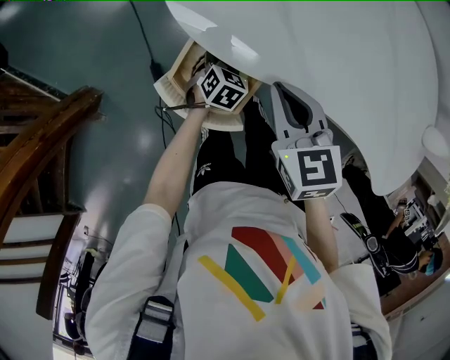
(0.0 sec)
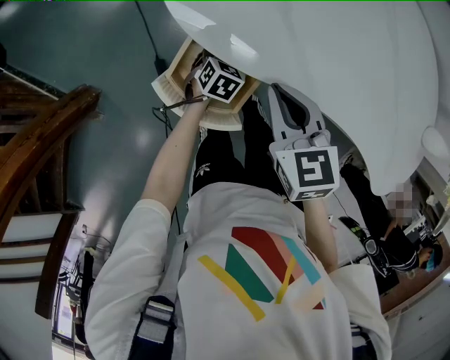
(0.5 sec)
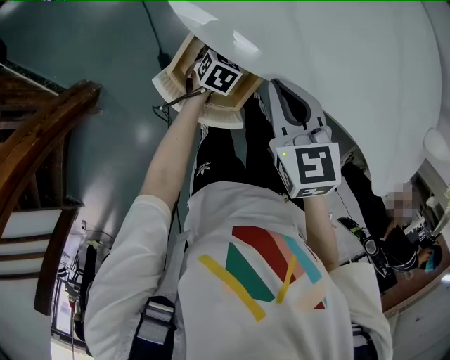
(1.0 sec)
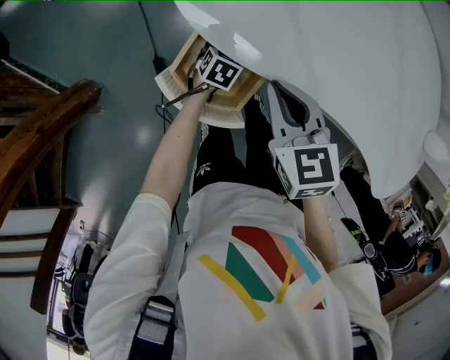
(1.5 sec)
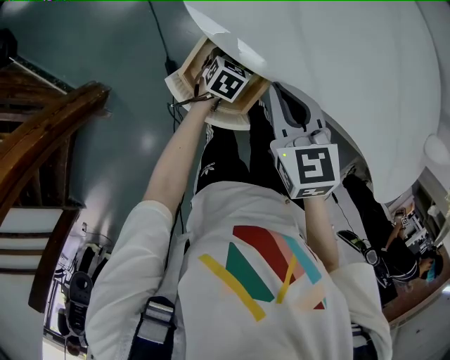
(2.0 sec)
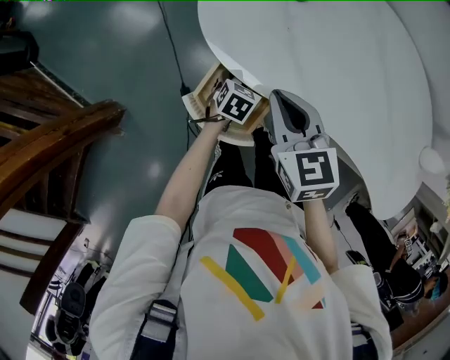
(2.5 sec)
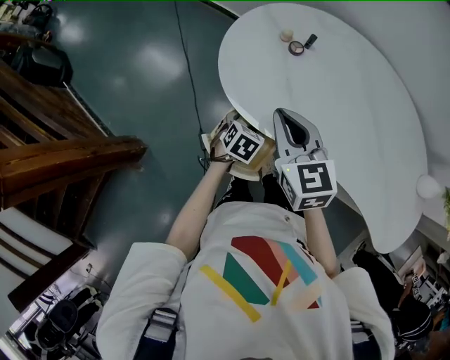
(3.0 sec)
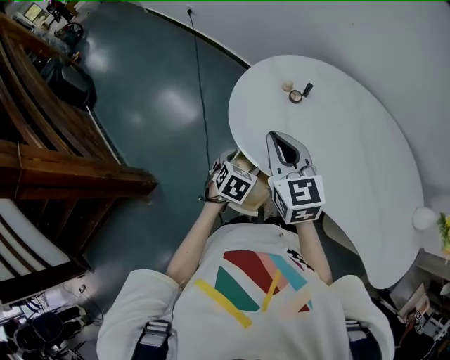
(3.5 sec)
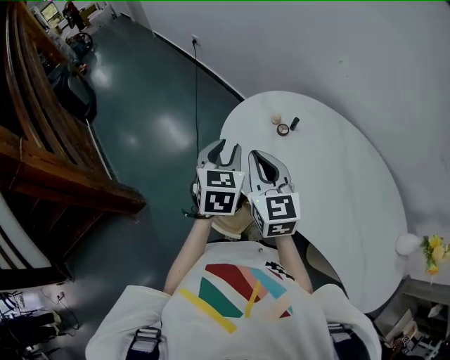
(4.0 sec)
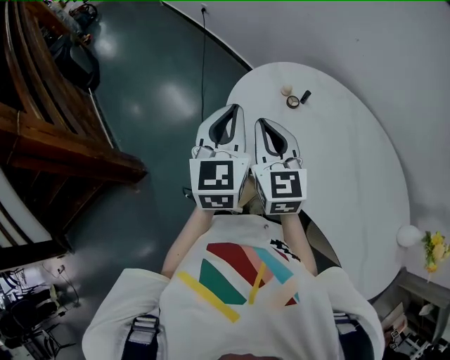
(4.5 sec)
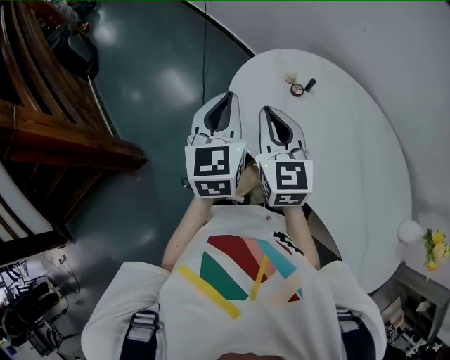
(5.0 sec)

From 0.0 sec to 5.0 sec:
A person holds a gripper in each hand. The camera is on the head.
From 0.0 sec to 2.5 sec: The two grippers go roughly 5 cm upward. The left gripper opens its fingers.
From 2.5 sec to 5.0 sec: The left gripper travels upward by some 40 cm, angles its fingers upward, by roughly 40 degrees, and closes its fingers, while the right gripper heads upward, covering about 15 cm, and rotates about 30 degrees.

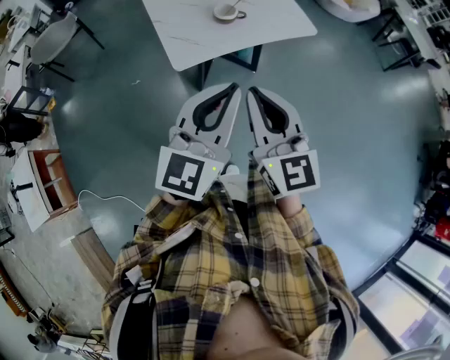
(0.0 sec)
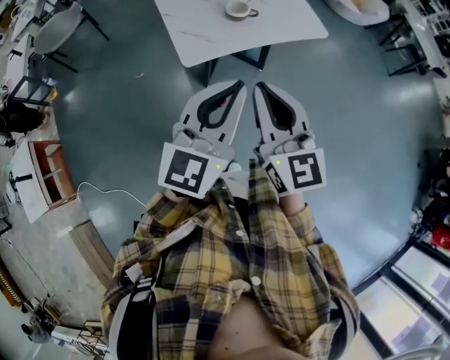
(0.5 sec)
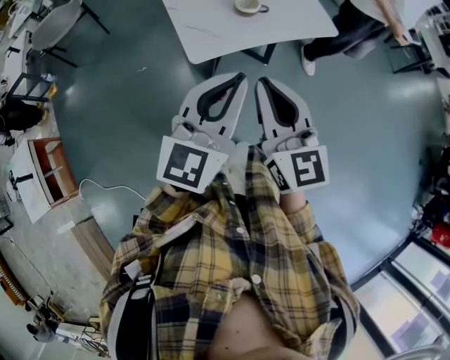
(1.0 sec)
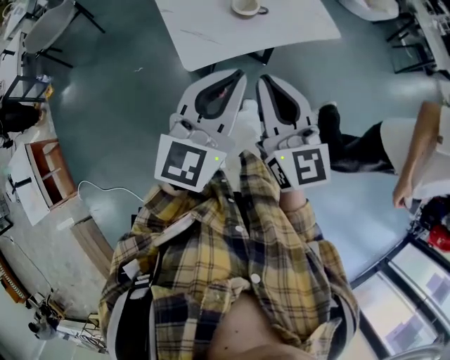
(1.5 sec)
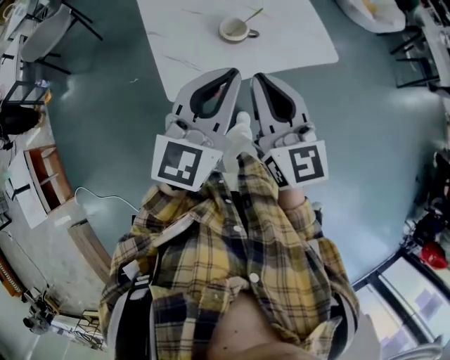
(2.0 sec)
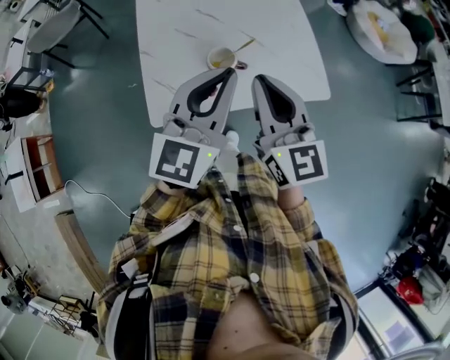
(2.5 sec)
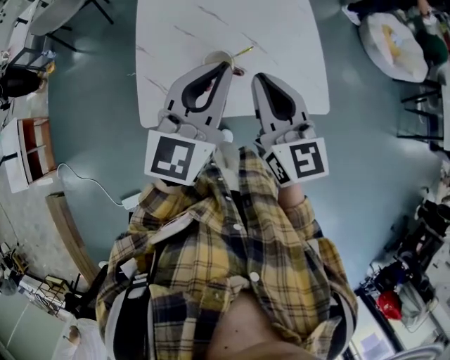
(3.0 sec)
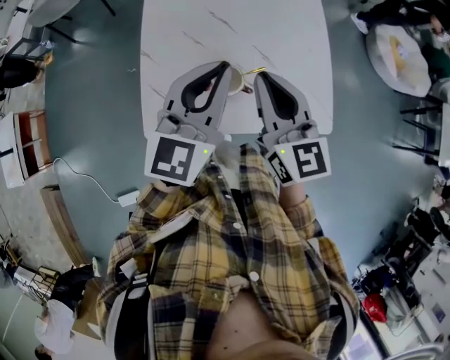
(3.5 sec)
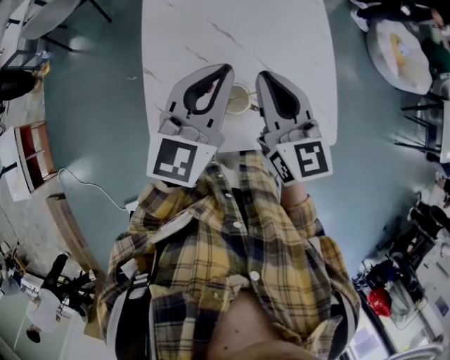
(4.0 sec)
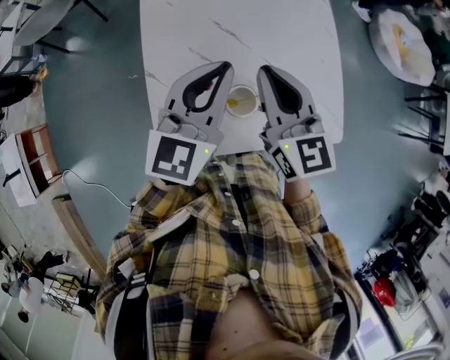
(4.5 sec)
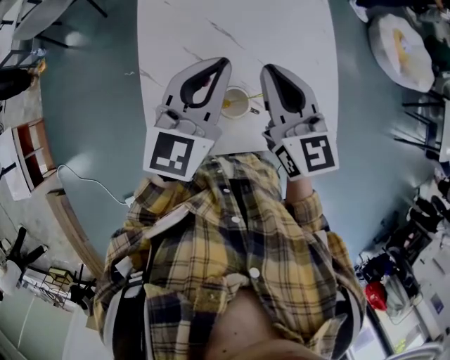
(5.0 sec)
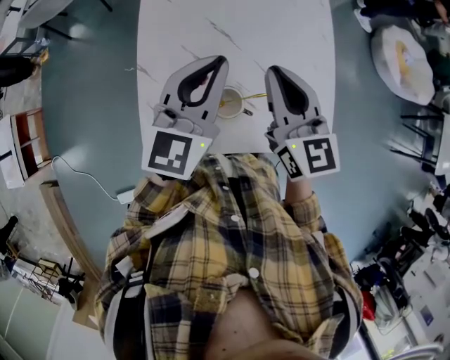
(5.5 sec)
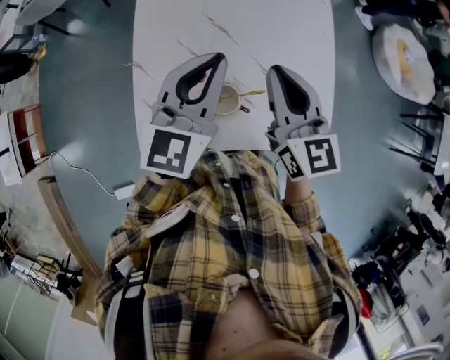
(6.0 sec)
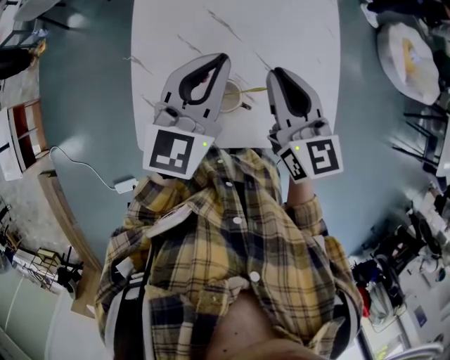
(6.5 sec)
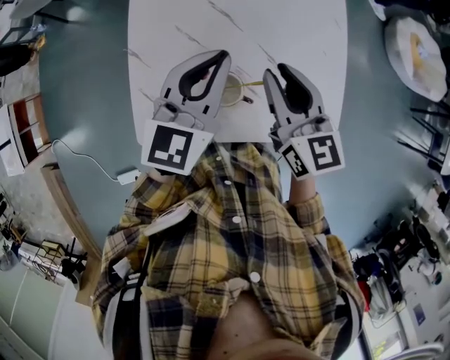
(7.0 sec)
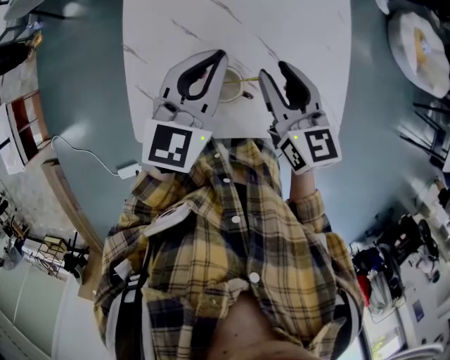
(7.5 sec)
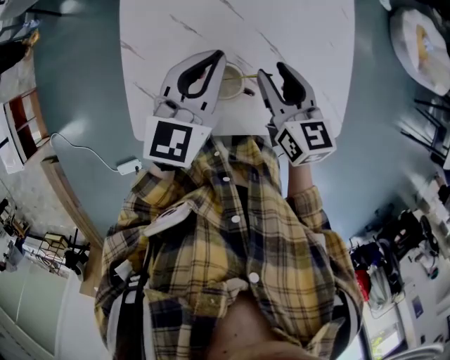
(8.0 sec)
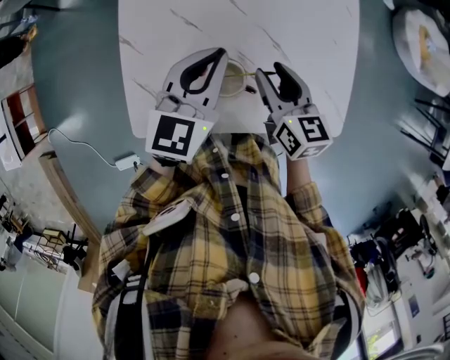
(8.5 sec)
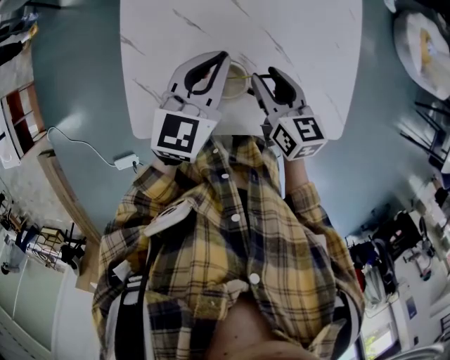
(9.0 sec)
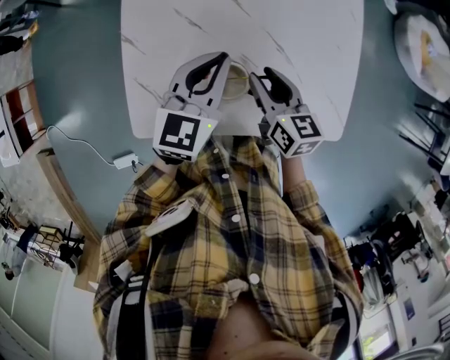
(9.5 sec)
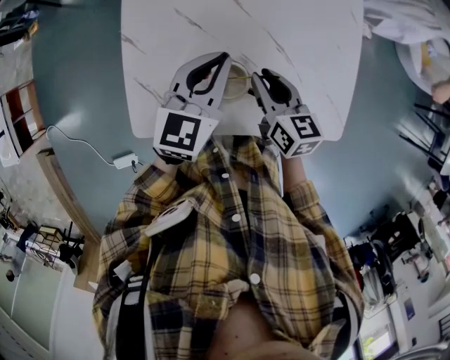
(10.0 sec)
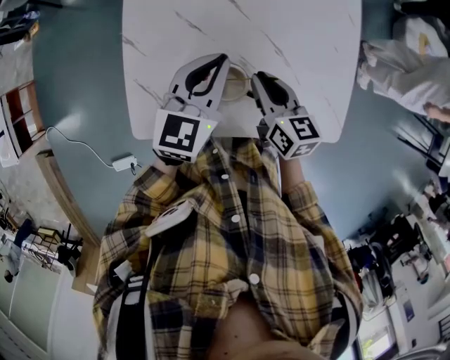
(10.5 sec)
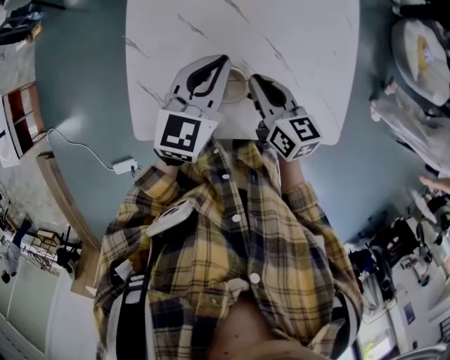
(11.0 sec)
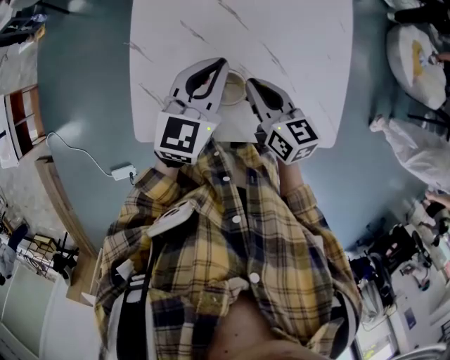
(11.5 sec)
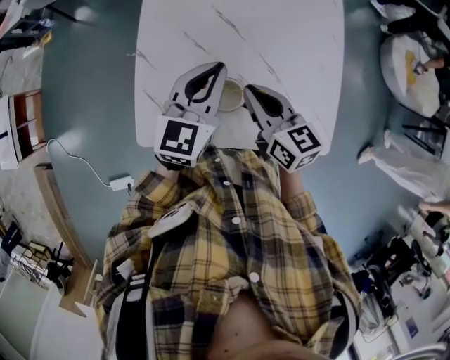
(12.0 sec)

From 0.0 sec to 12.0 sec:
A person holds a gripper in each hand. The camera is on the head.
From 0.0 sec to 2.0 sec: The two grippers go about 20 cm forward.
From 2.0 sec to 4.0 sec: The two grippers go some 25 cm forward.
From 4.0 sec to 6.0 sec: The right gripper changes place by approximately 5 cm.
From 6.0 sec to 8.0 sec: Both grippers move downward, some 10 cm. The right gripper opens up.
From 8.0 sec to 10.0 sec: The right gripper goes some 5 cm downward.
From 10.0 sec to 12.0 sec: The left gripper heads upward, covering some 5 cm; the right gripper is displaced upward by roughly 10 cm.

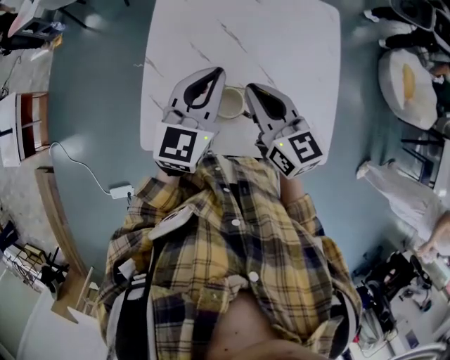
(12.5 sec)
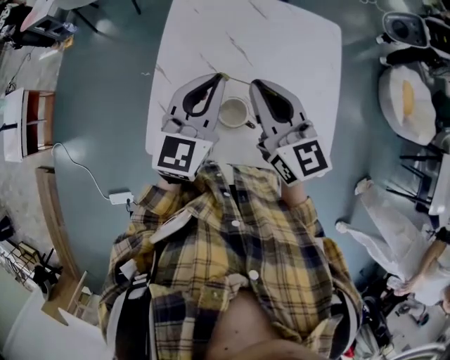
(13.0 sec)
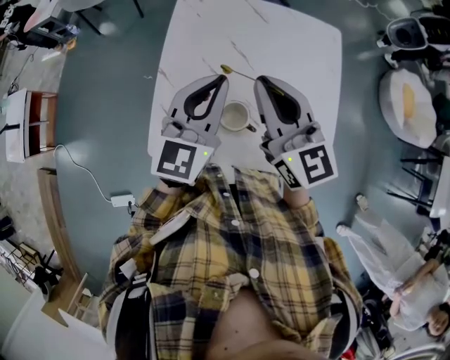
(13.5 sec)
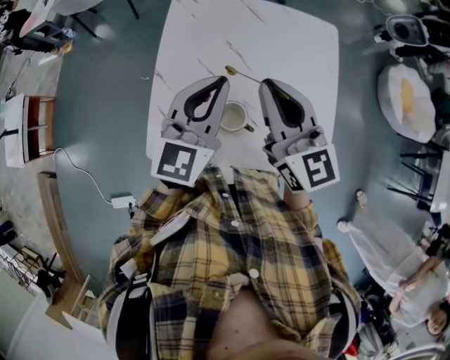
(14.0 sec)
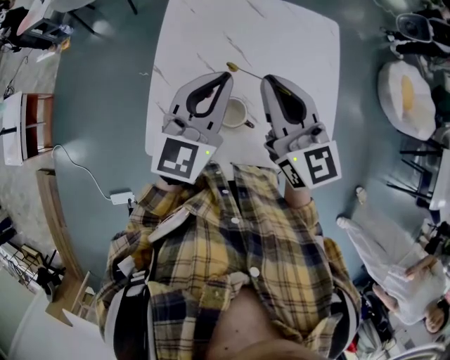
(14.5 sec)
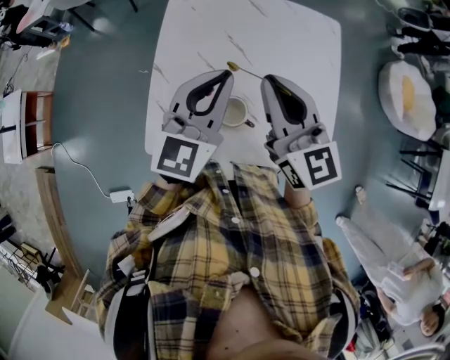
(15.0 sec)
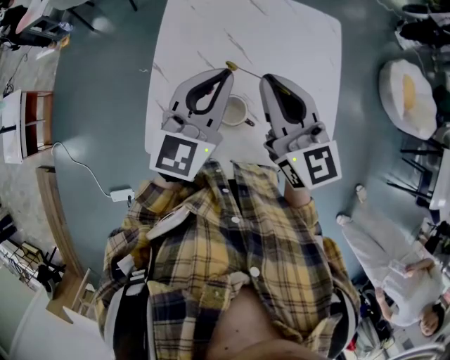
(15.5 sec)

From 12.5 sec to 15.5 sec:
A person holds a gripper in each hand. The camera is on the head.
From 12.5 sec to 14.0 sec: The right gripper shifts approximately 10 cm upward. The left gripper travels upward by about 5 cm.
From 14.0 sec to 15.5 sec: Both grippers stay put.

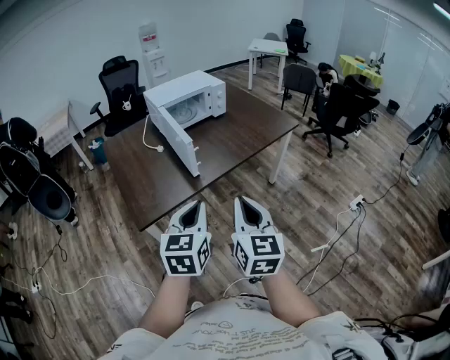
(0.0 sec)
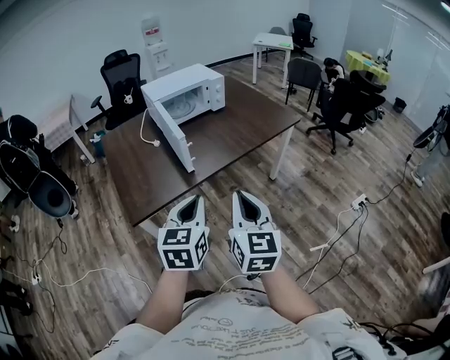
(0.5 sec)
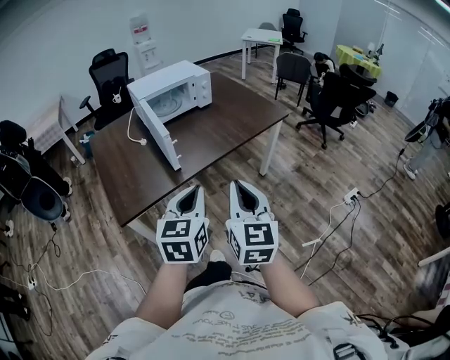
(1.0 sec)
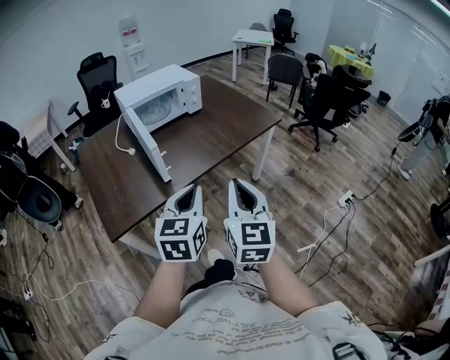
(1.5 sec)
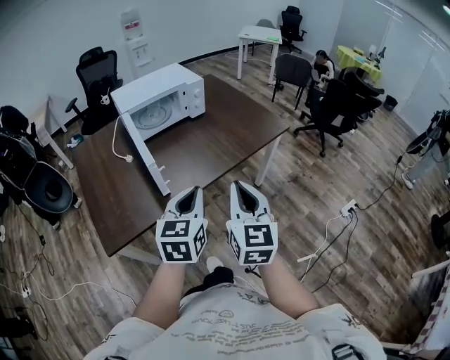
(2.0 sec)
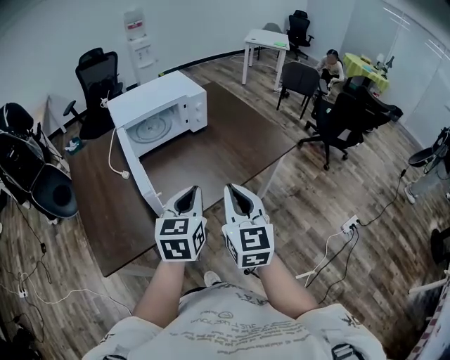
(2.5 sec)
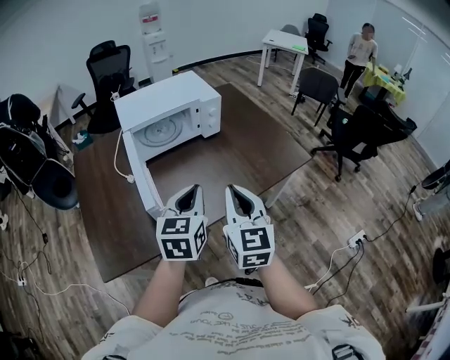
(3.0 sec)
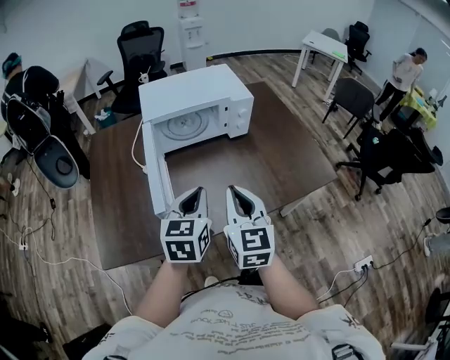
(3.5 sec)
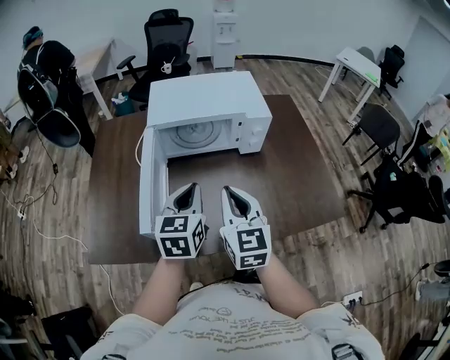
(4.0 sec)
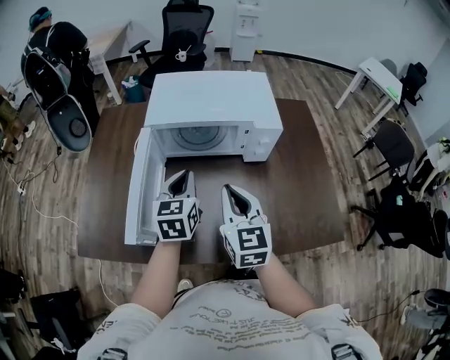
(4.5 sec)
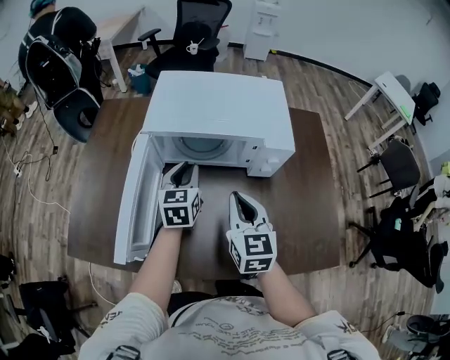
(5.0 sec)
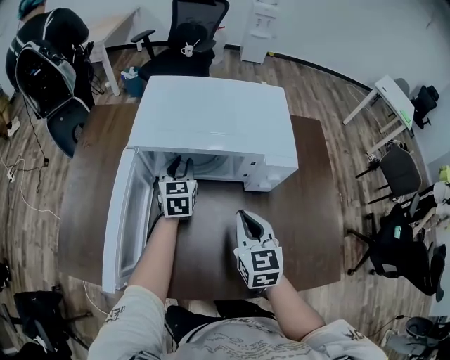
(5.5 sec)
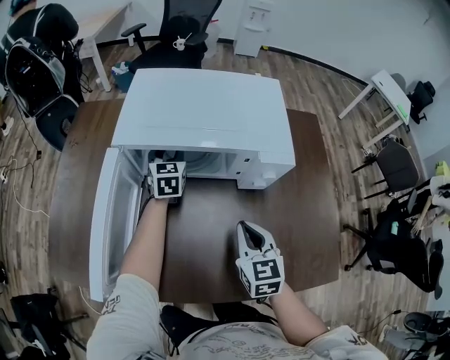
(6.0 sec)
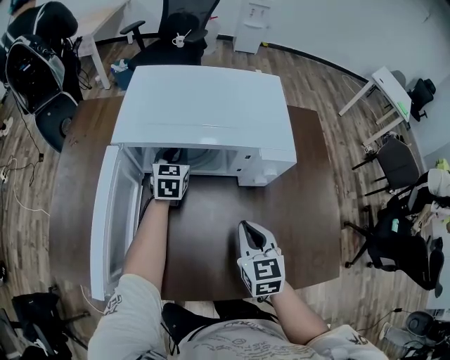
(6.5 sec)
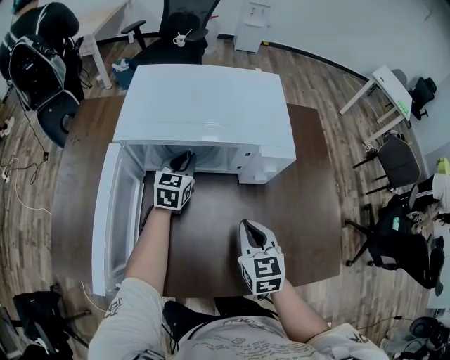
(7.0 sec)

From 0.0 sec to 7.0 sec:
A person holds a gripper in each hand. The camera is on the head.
From 0.0 sec to 2.0 sec: The two grippers go about 20 cm forward and to the right.
From 2.0 sec to 3.5 sec: Both grippers move forward, some 25 cm. The right gripper turns by some 20 degrees.
From 3.5 sec to 5.0 sec: Both grippers move forward, roughly 25 cm. The left gripper turns by about 30 degrees. Meanwhile the right gripper rotates approximately 20 degrees.
From 5.0 sec to 7.0 sec: The right gripper heads downward and to the right, covering some 10 cm. The left gripper heads forward and downward, covering approximately 15 cm.
